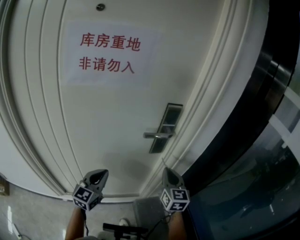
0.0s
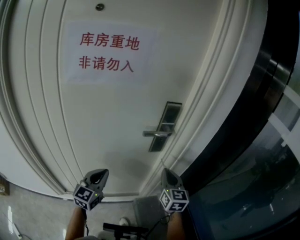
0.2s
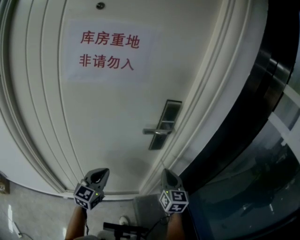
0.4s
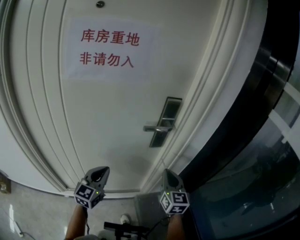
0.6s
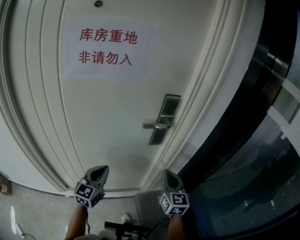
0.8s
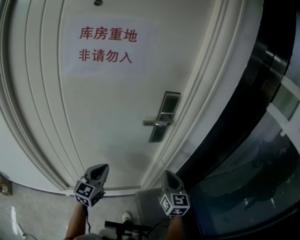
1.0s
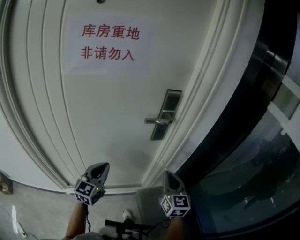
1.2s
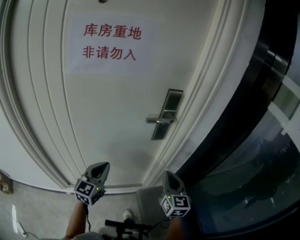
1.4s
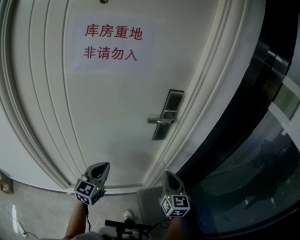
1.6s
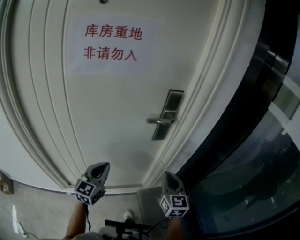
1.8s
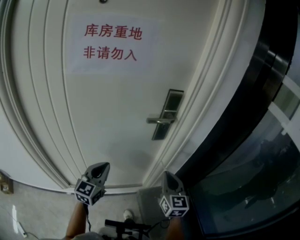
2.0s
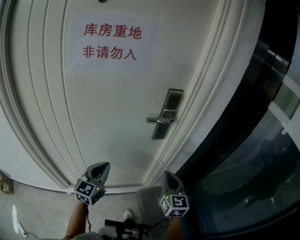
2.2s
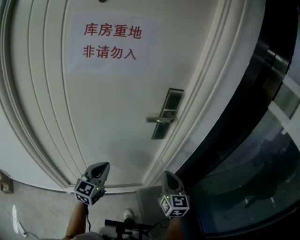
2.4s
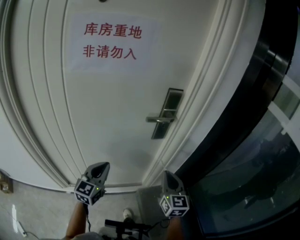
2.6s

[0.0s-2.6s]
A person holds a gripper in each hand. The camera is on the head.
0.0s to 1.2s: The right gripper heads backward, covering some 10 cm.
1.2s to 2.6s: Both grippers stay about where they are.

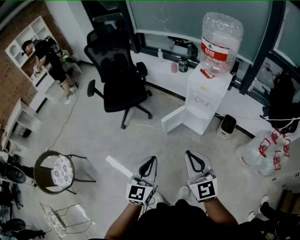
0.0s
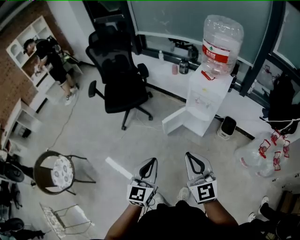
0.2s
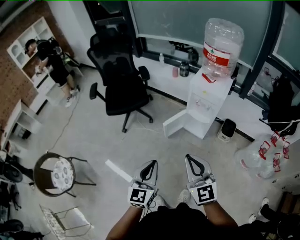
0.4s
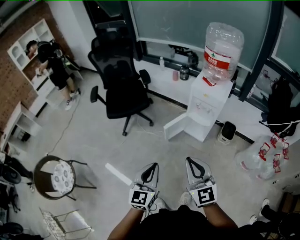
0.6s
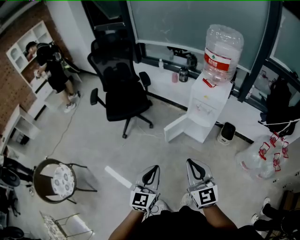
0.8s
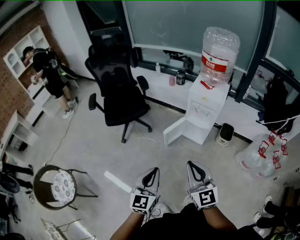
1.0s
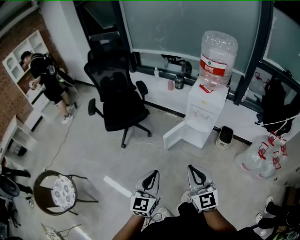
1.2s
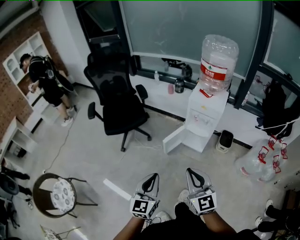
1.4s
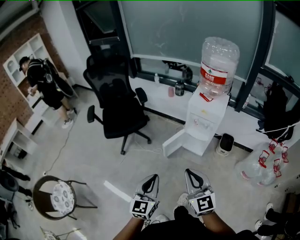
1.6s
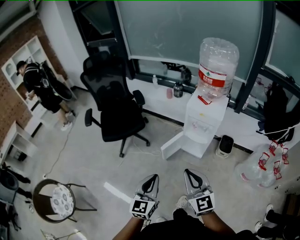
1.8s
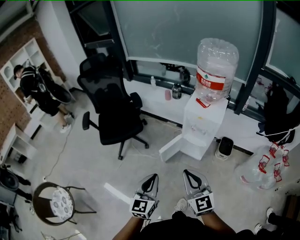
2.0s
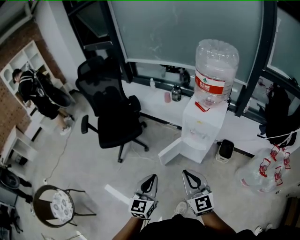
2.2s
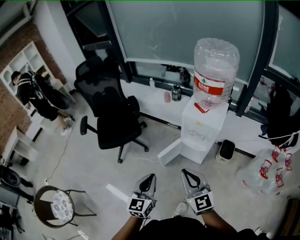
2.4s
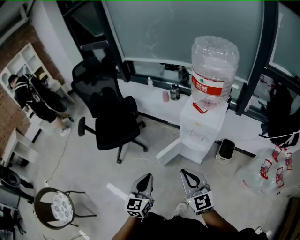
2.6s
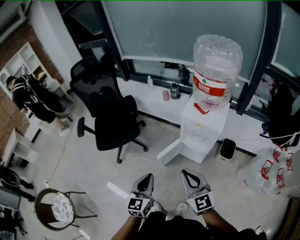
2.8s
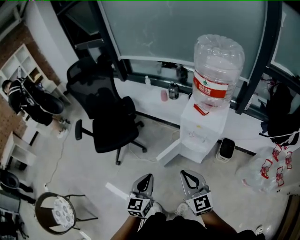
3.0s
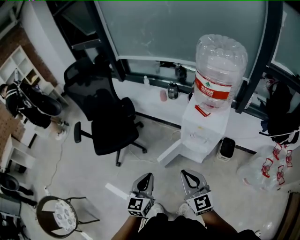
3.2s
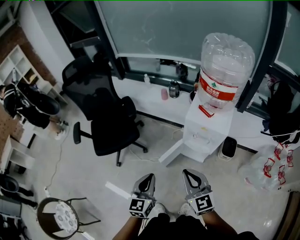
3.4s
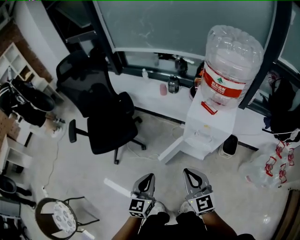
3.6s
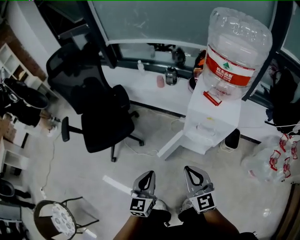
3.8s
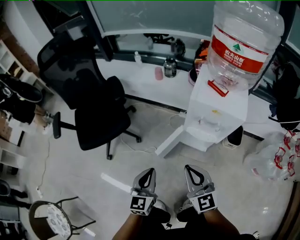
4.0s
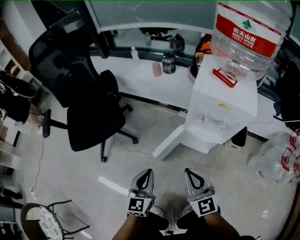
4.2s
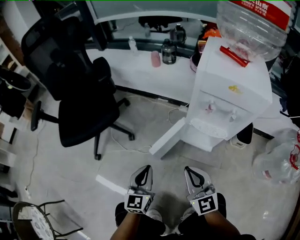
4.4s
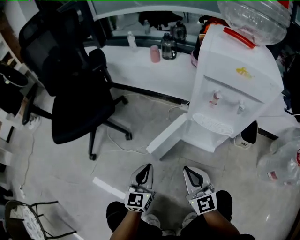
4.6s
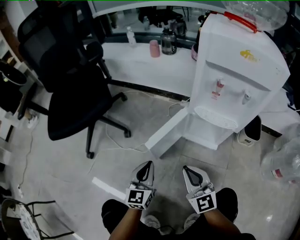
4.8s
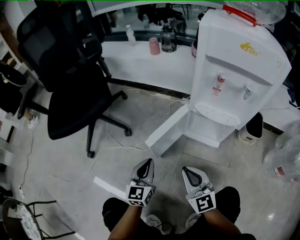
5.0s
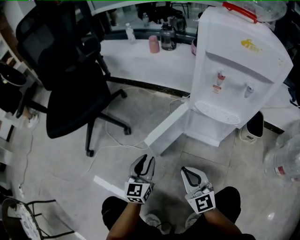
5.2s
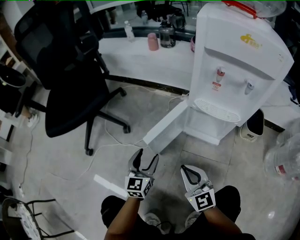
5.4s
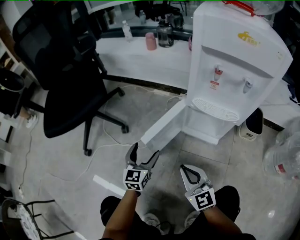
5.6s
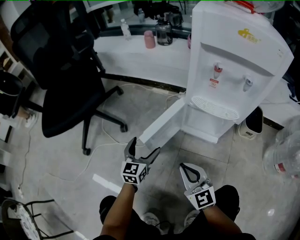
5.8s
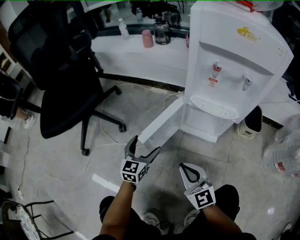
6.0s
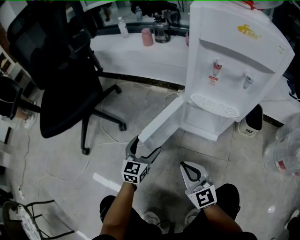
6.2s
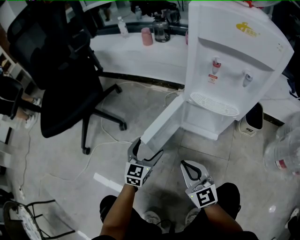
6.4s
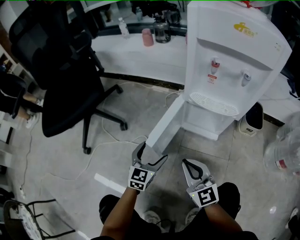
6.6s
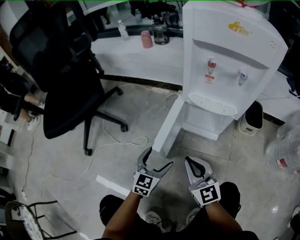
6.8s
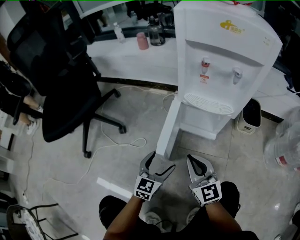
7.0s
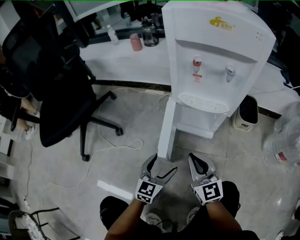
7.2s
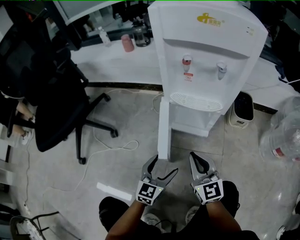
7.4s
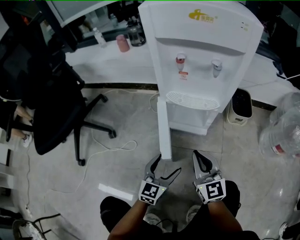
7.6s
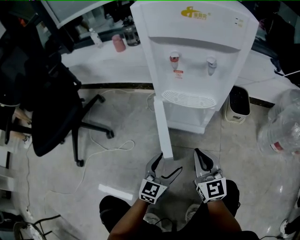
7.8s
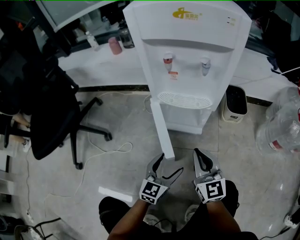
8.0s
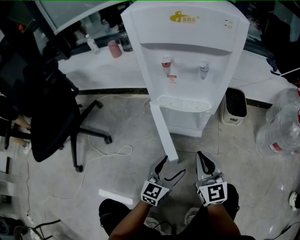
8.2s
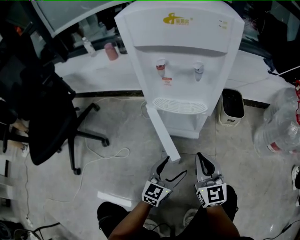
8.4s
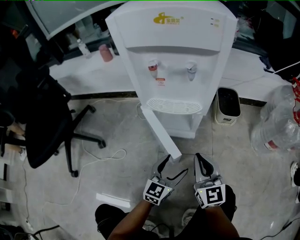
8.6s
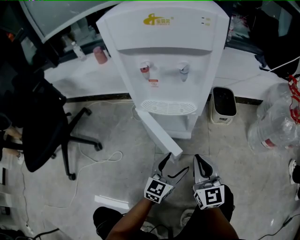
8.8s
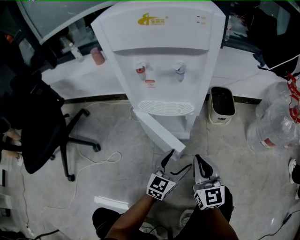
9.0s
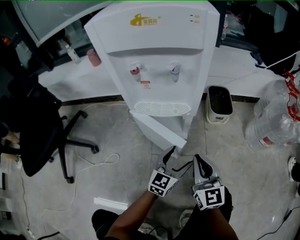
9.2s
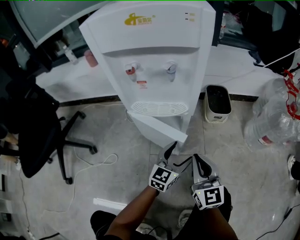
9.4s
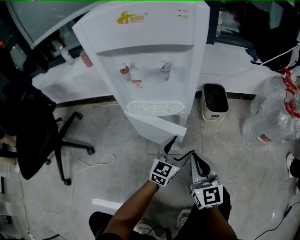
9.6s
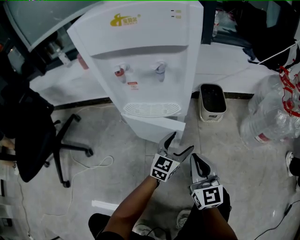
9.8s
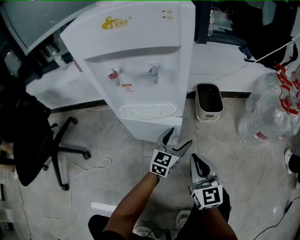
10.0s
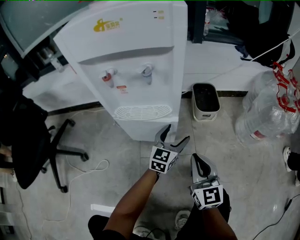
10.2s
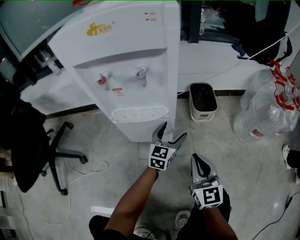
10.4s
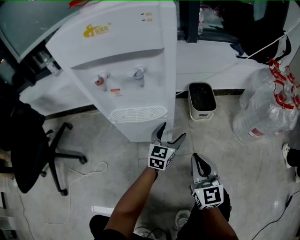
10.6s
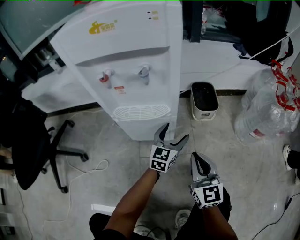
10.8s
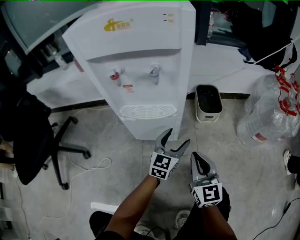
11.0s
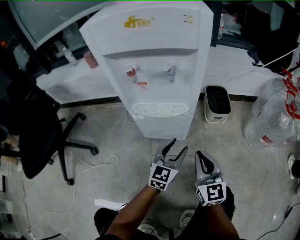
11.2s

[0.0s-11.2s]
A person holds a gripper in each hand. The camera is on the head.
0.0s to 1.6s: The right gripper ends up roughly 5 cm from where it was. The left gripper shifts by approximately 5 cm.
1.6s to 3.2s: Both grippers move forward, about 20 cm.
3.2s to 4.8s: Both grippers move downward, roughly 50 cm.
4.8s to 6.4s: The left gripper shifts about 10 cm downward and forward, and opens its fingers.
6.4s to 8.0s: The two grippers go roughly 15 cm to the right. The right gripper turns by about 20 degrees, while the left gripper changes its angle by roughly 20 degrees.
8.0s to 9.6s: The left gripper moves to the right and forward, about 20 cm. Meanwhile the right gripper goes about 10 cm to the right.
9.6s to 11.2s: The left gripper reaches about 10 cm forward, then returns.

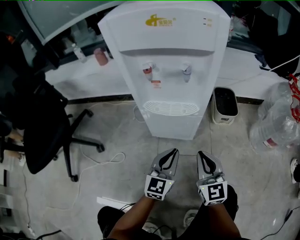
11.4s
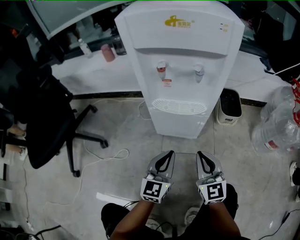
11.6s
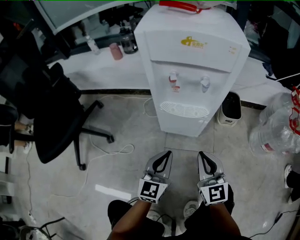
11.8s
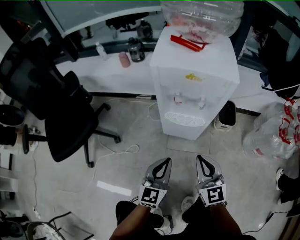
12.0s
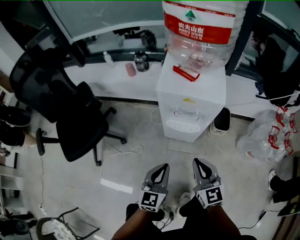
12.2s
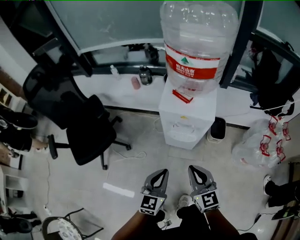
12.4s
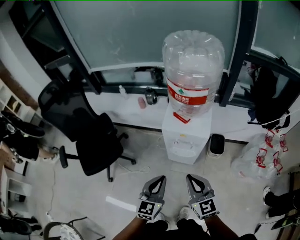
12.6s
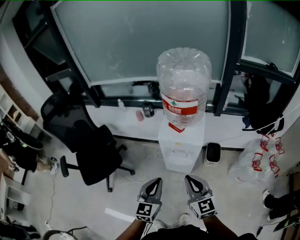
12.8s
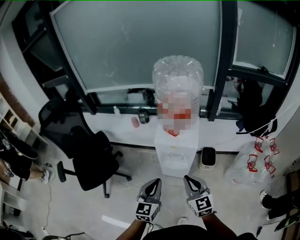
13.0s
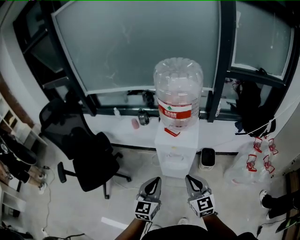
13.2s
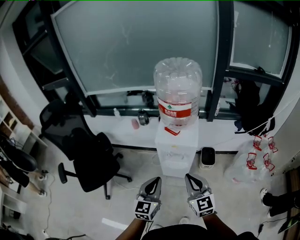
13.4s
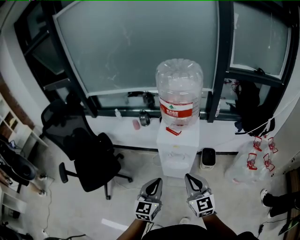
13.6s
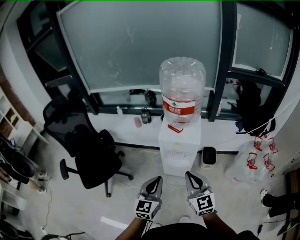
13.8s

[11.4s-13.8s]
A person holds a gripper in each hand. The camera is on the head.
11.4s to 12.6s: Both grippers travel together upward, about 50 cm.
12.6s to 13.8s: Both grippers travel together upward, about 5 cm.

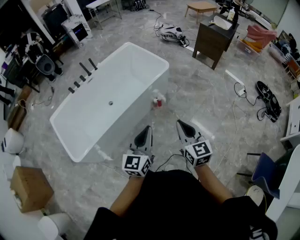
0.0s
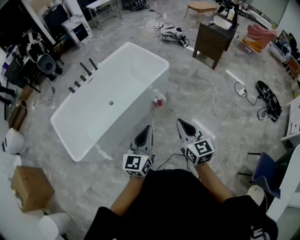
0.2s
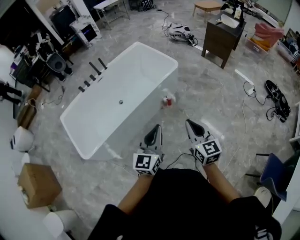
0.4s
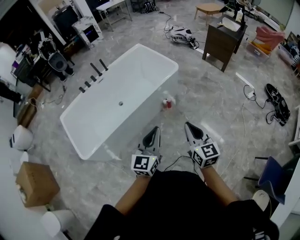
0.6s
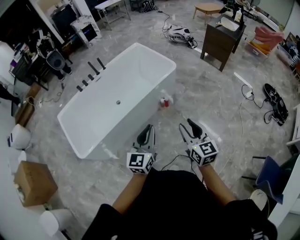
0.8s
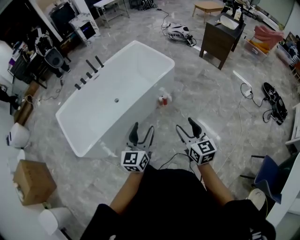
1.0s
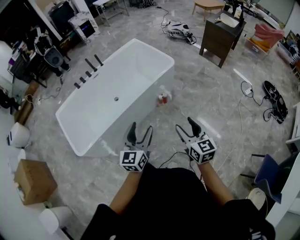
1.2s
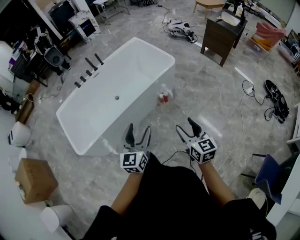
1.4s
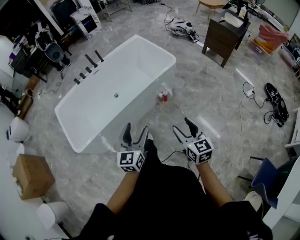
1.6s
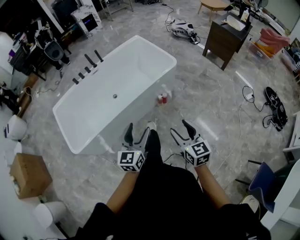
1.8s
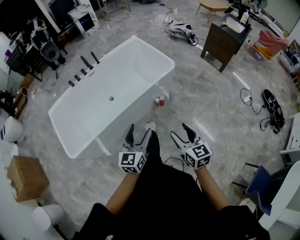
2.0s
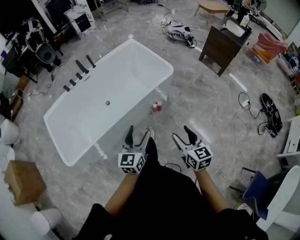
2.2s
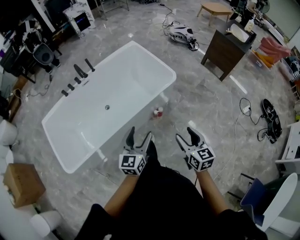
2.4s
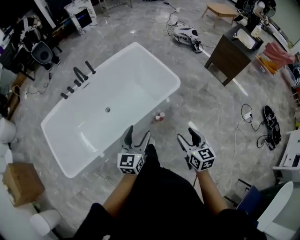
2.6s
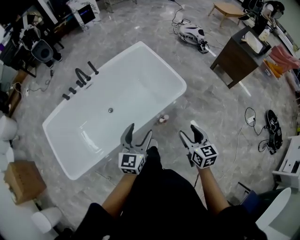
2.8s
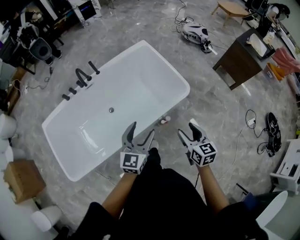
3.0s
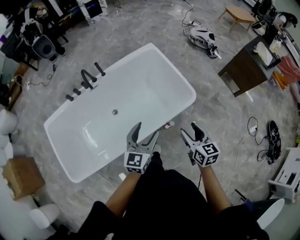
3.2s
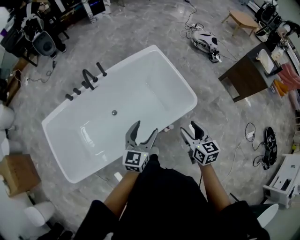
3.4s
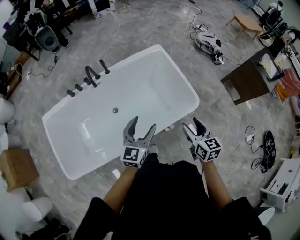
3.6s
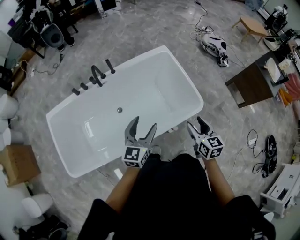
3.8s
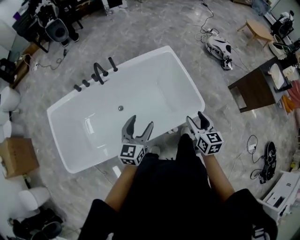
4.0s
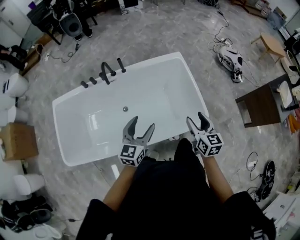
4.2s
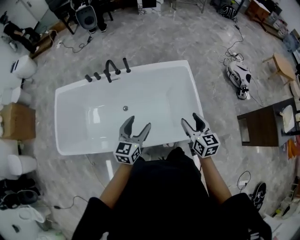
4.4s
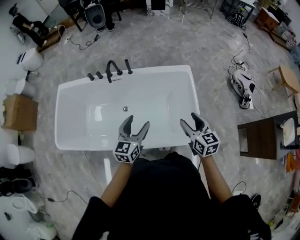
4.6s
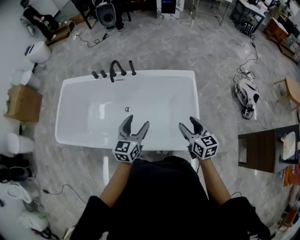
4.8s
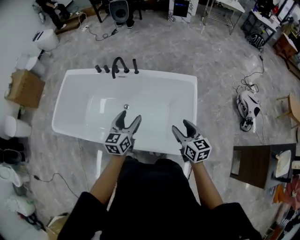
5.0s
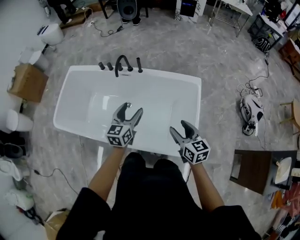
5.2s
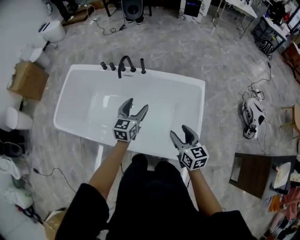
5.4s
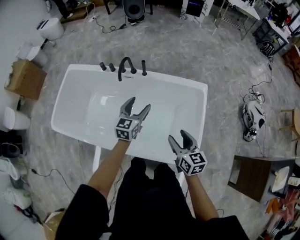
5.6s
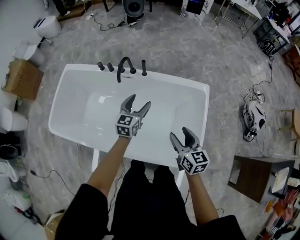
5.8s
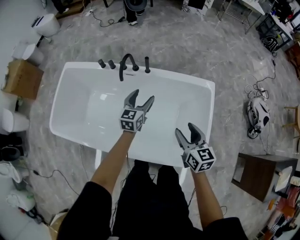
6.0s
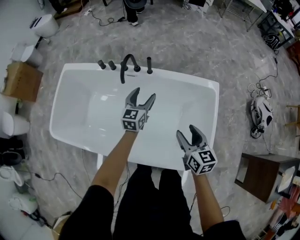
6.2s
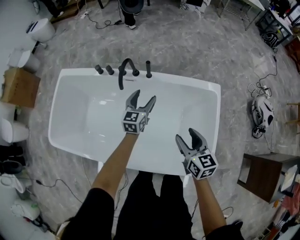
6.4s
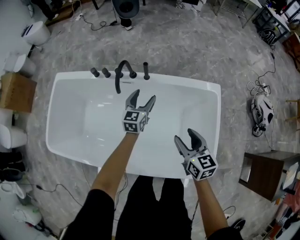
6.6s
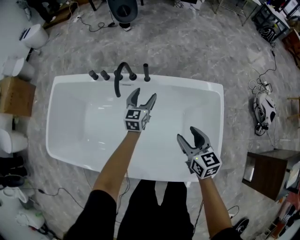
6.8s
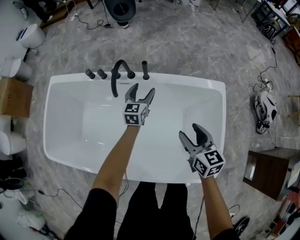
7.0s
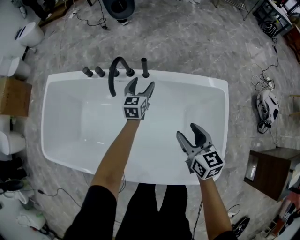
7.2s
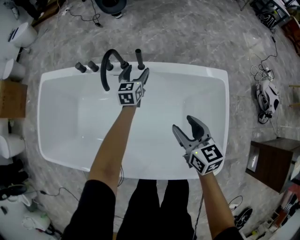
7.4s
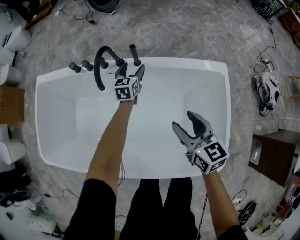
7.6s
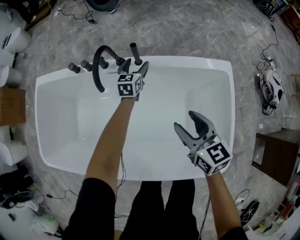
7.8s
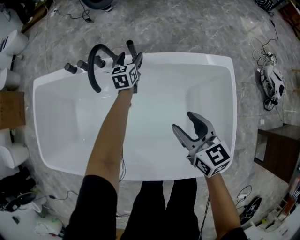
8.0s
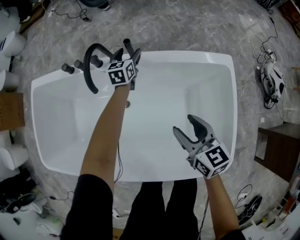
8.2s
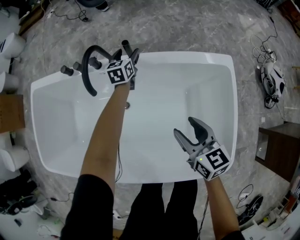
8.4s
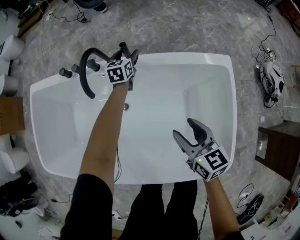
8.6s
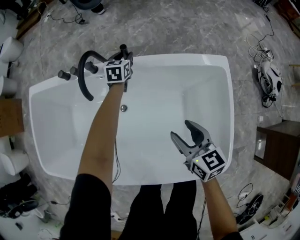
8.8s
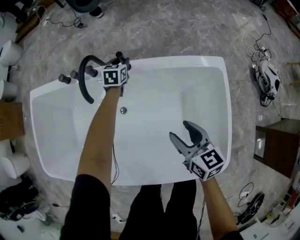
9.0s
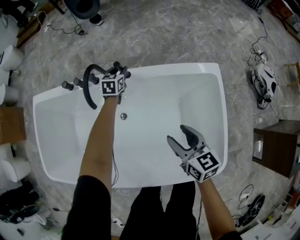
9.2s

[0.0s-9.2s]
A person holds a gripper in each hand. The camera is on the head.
0.0s to 1.6s: The grippers both shift downward by approximately 5 cm. The right gripper opens, while the left gripper opens its fingers.
1.6s to 3.0s: The pair of grippers is taken forward, about 40 cm.
3.0s to 4.6s: The right gripper shifts by about 35 cm, and turns by roughly 40 degrees, while the left gripper changes place by roughly 20 cm, and swivels about 30 degrees.
4.6s to 6.2s: The left gripper is displaced forward and downward by some 30 cm, while the right gripper travels forward, downward and to the left by approximately 20 cm.
6.2s to 7.6s: The left gripper is displaced downward and forward by about 25 cm. The right gripper shifts roughly 15 cm downward and forward.
7.6s to 9.2s: The left gripper heads forward, covering roughly 5 cm, and closes up.
